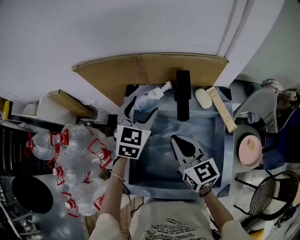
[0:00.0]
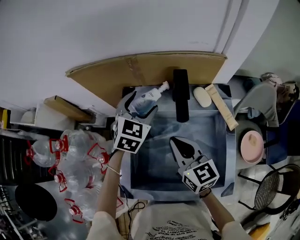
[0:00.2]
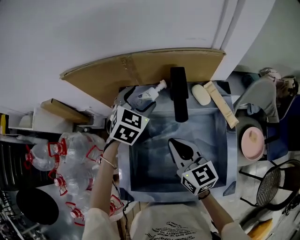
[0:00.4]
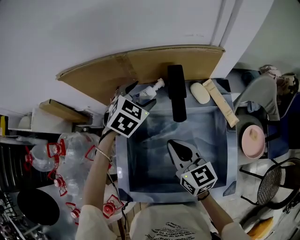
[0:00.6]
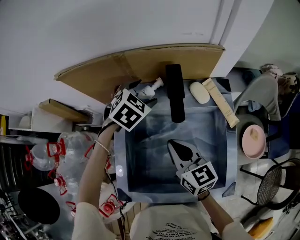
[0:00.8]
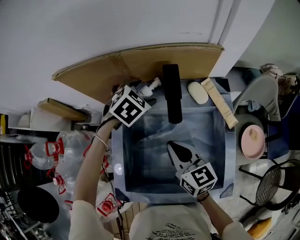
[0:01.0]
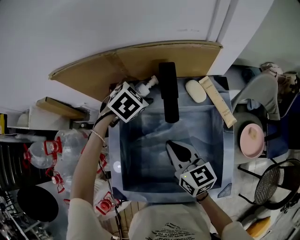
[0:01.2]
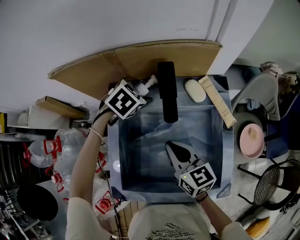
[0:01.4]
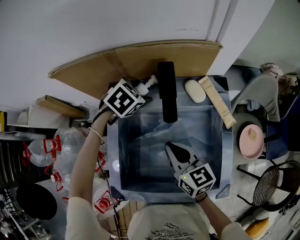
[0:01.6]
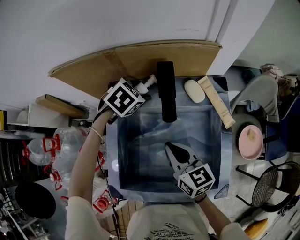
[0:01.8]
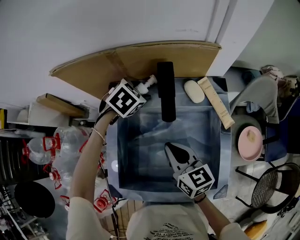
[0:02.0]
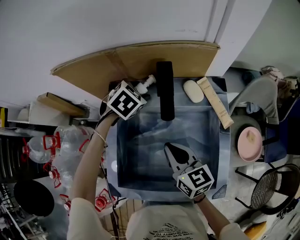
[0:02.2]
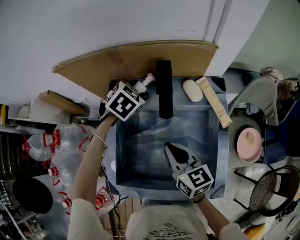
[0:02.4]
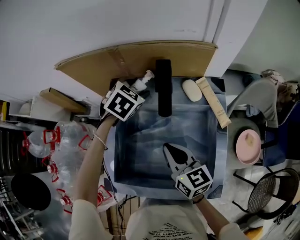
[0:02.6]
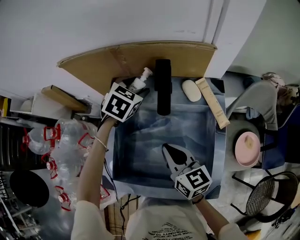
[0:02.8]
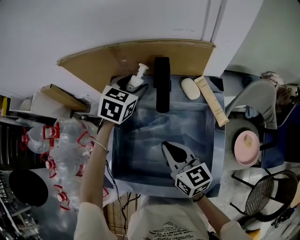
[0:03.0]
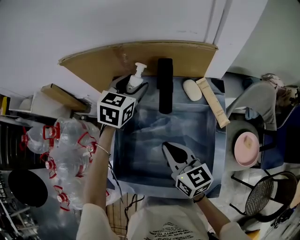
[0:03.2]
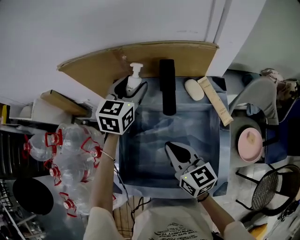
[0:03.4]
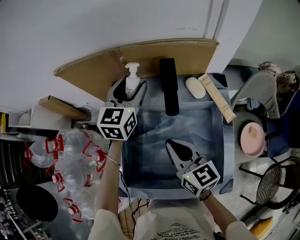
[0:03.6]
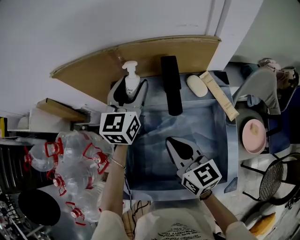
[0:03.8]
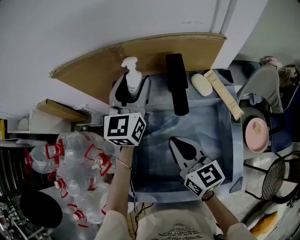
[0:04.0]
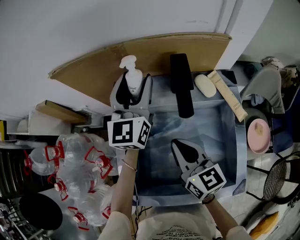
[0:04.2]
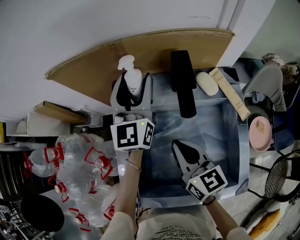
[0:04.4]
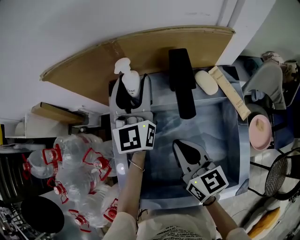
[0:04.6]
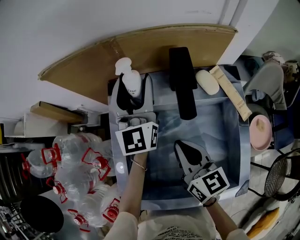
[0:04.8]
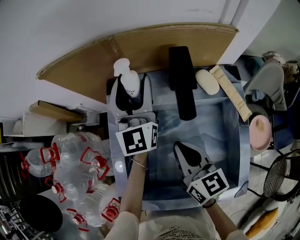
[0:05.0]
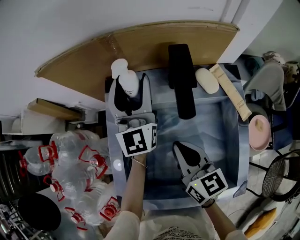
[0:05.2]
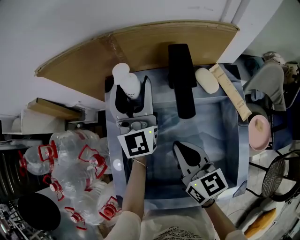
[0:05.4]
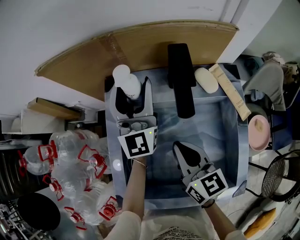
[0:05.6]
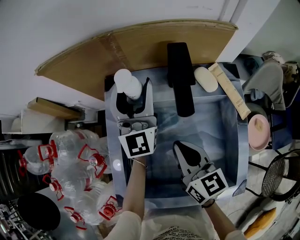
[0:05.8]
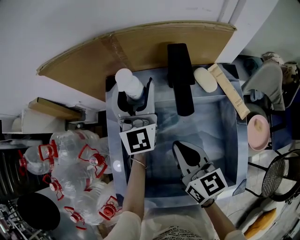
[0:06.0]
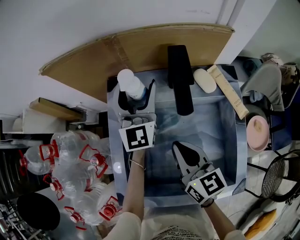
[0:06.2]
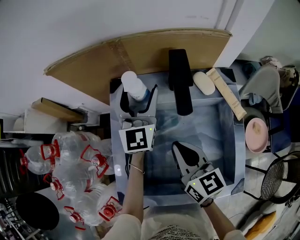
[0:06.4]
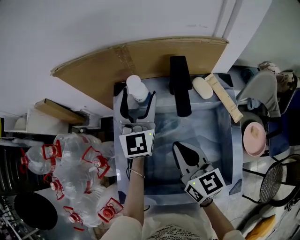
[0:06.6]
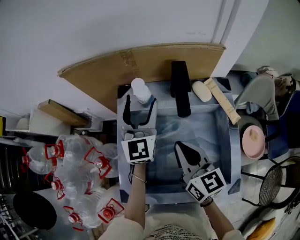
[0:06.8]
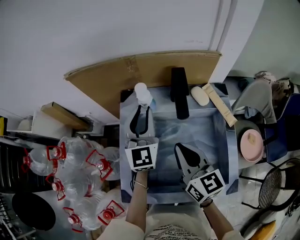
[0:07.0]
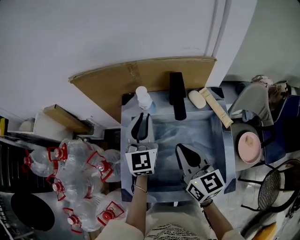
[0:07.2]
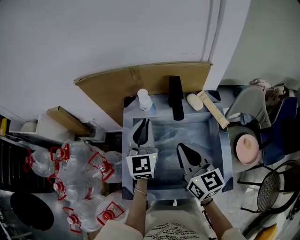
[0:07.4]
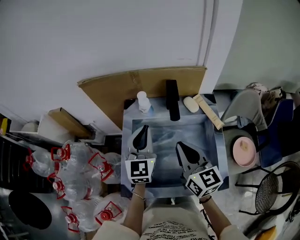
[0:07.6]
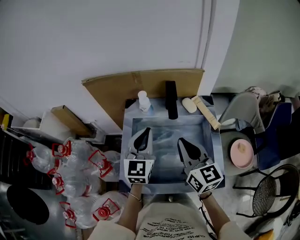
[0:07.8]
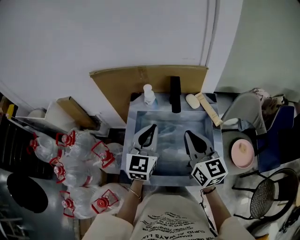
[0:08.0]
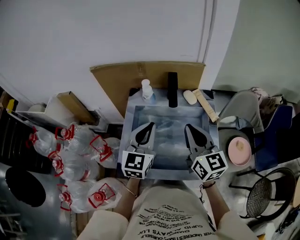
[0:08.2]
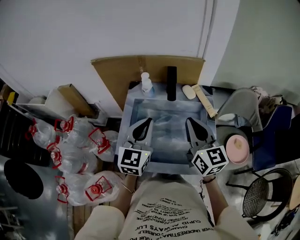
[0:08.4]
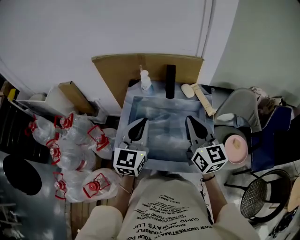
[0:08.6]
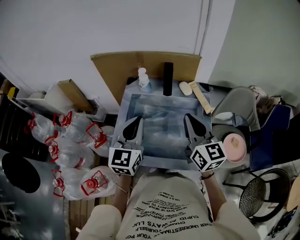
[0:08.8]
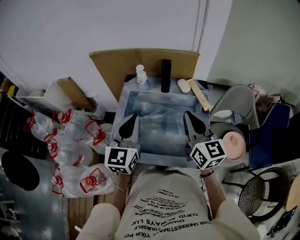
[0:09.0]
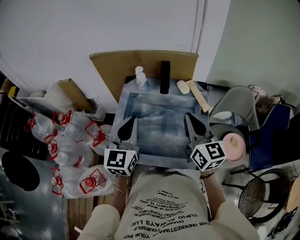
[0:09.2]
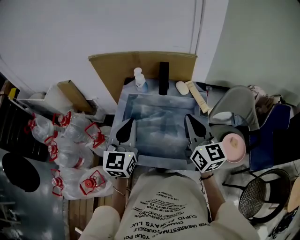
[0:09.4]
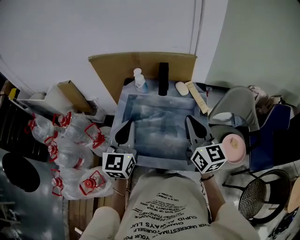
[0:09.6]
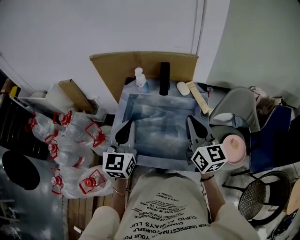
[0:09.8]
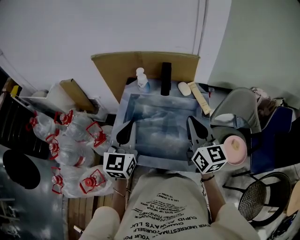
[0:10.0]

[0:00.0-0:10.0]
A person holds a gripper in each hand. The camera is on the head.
0:00.0 to 0:01.4: The left gripper goes some 10 cm downward and forward, and tilts its fingers some 40 degrees downward. The right gripper travels downward by approximately 5 cm.
0:01.4 to 0:02.8: The left gripper turns by some 20 degrees.
0:02.8 to 0:04.2: The left gripper moves upward, approximately 10 cm, and tilts its fingers about 50 degrees upward. The right gripper moves roughly 5 cm.
0:04.2 to 0:05.8: The grippers stay close to where they were, moving slightly.
0:05.8 to 0:07.2: The left gripper moves backward, some 10 cm, and closes. Meanwhile the right gripper moves upward, roughly 10 cm.
0:07.2 to 0:08.6: The right gripper moves to the right and upward, approximately 10 cm. The left gripper is displaced backward by about 15 cm.
0:08.6 to 0:10.0: The grippers make only small movements.

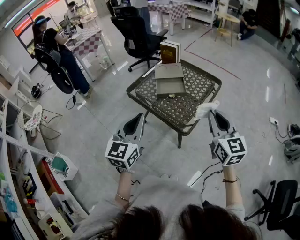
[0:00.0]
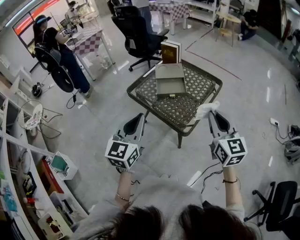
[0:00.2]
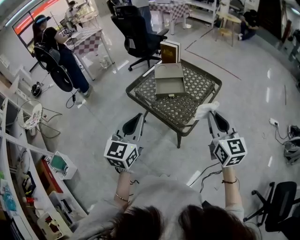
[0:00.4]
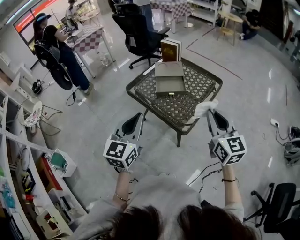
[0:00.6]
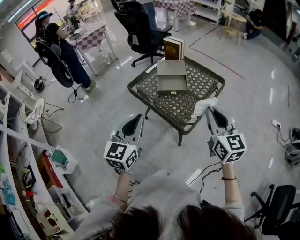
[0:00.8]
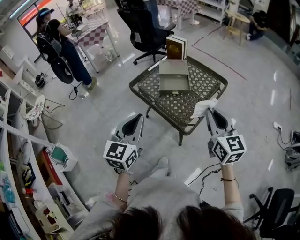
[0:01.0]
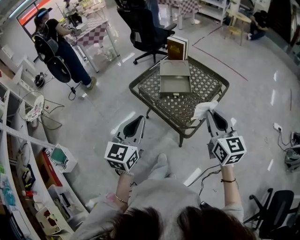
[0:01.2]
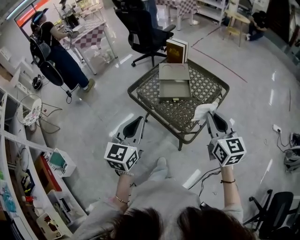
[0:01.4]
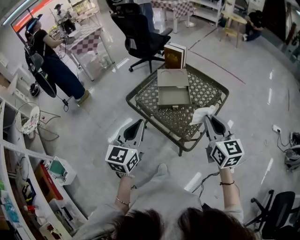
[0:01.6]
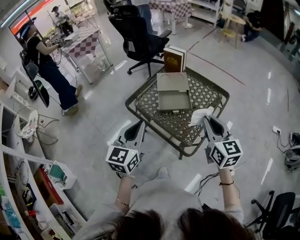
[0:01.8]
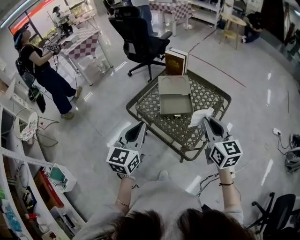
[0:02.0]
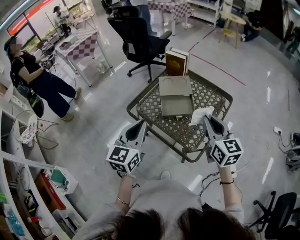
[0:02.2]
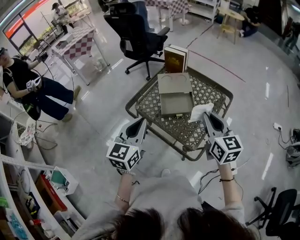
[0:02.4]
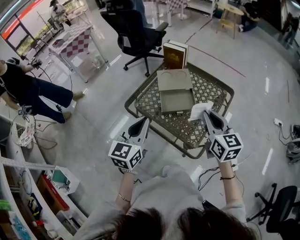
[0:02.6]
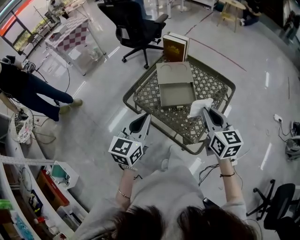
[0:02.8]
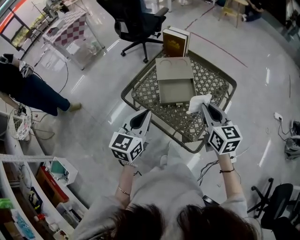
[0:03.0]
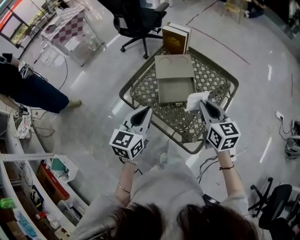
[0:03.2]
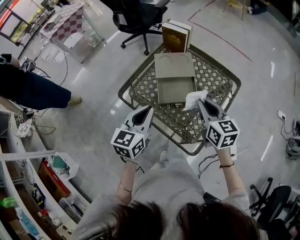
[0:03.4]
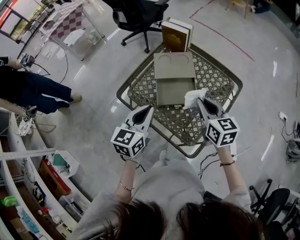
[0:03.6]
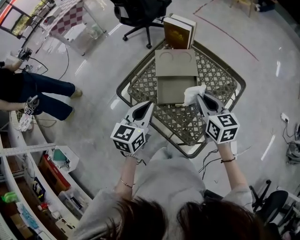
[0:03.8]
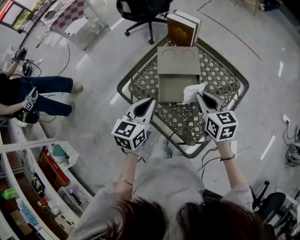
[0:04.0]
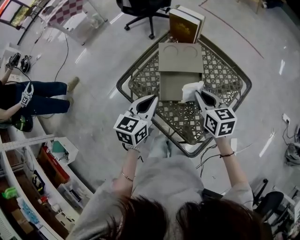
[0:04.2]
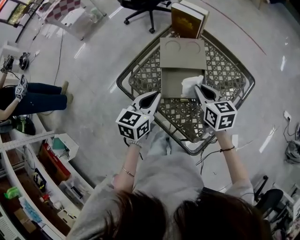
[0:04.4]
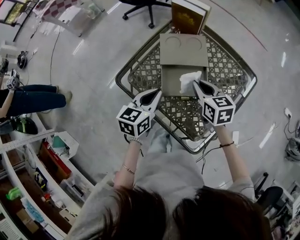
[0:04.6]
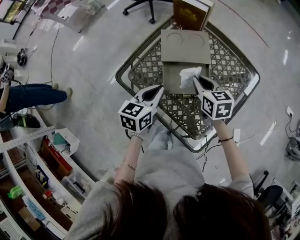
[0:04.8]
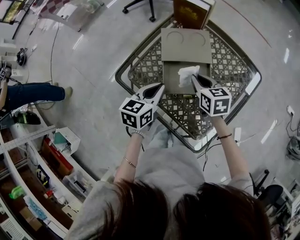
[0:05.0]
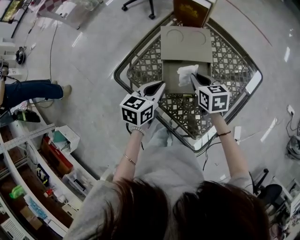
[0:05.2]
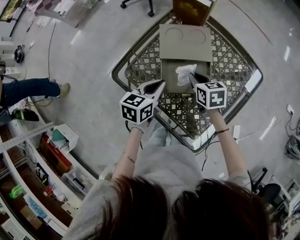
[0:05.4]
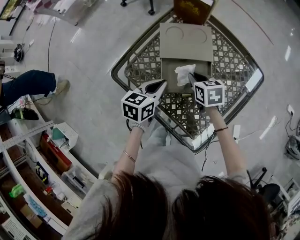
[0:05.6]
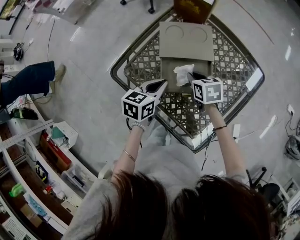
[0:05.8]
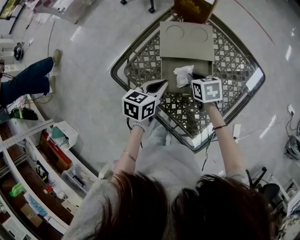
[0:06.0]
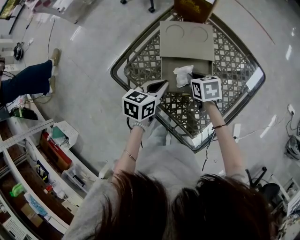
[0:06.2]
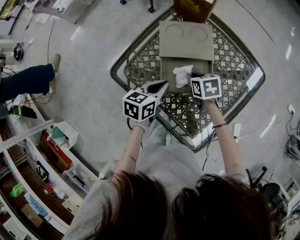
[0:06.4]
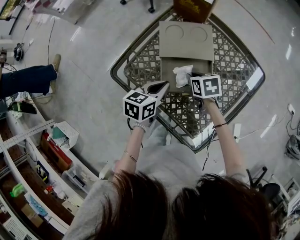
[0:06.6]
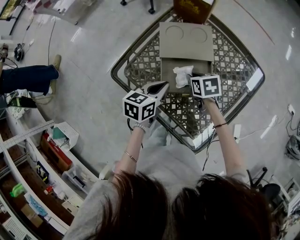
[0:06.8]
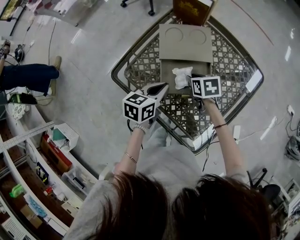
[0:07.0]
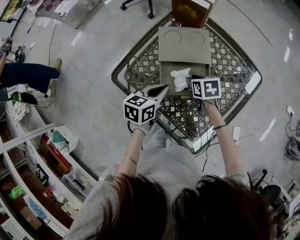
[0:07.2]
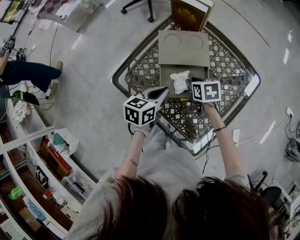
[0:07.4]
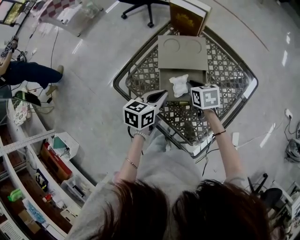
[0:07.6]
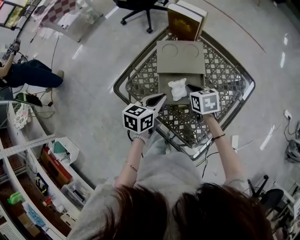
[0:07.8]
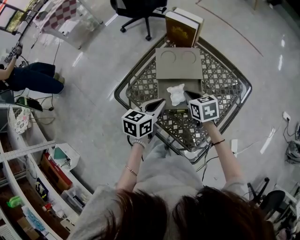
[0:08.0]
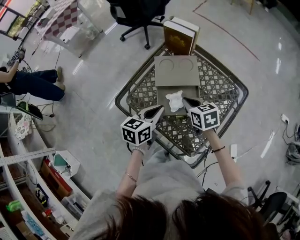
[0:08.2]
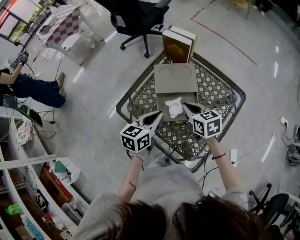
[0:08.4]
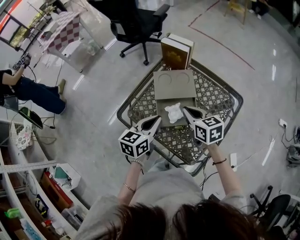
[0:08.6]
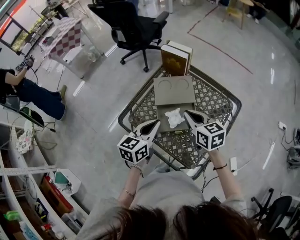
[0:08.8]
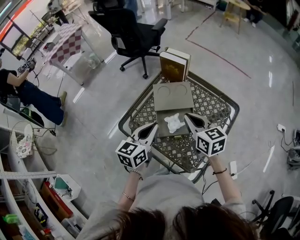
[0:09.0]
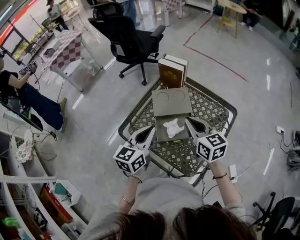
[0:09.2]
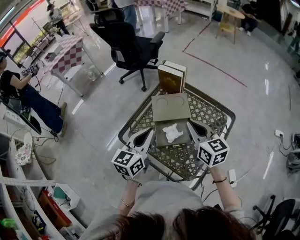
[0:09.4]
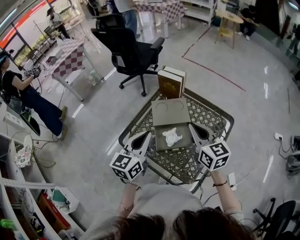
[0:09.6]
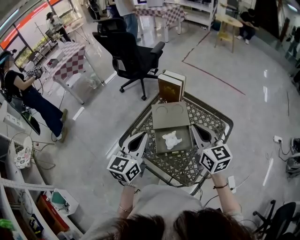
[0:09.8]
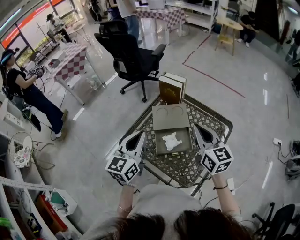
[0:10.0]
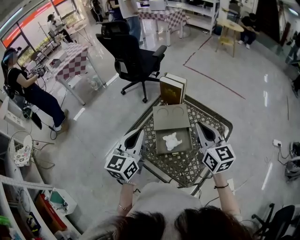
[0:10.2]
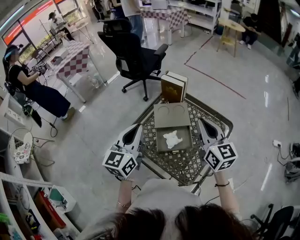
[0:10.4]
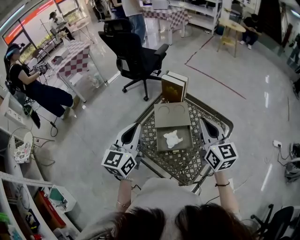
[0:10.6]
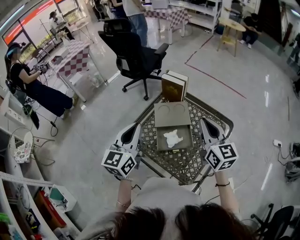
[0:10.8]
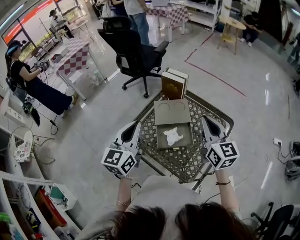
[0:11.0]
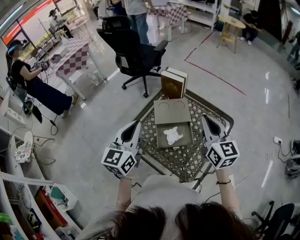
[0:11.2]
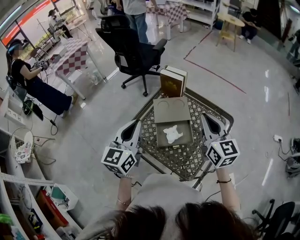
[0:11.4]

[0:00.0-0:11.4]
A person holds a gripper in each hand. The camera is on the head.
0:00.0 to 0:01.4: The grippers both shift forward by about 10 cm.
0:01.4 to 0:02.8: The left gripper moves forward, roughly 15 cm. Meanwhile the right gripper is displaced forward and downward by approximately 15 cm.
0:02.8 to 0:04.2: The two grippers go some 20 cm forward and downward.
0:04.2 to 0:05.6: The two grippers go some 15 cm downward and forward. The right gripper changes its angle by approximately 20 degrees.
0:05.6 to 0:07.2: There are only small adjustments of the grippers.
0:07.2 to 0:08.6: The right gripper moves upward, roughly 20 cm, swivels some 30 degrees, and closes its fingers; the left gripper travels upward by some 10 cm.
0:08.6 to 0:10.0: Both grippers move upward, about 15 cm. The right gripper turns by roughly 30 degrees, while the left gripper changes its angle by roughly 20 degrees.
0:10.0 to 0:11.4: There are only small adjustments of the grippers.

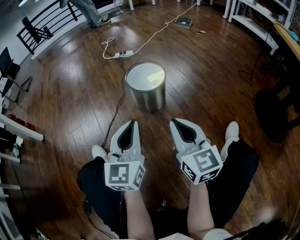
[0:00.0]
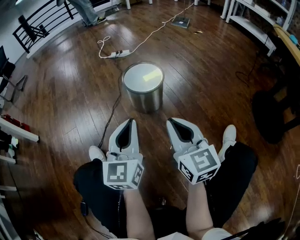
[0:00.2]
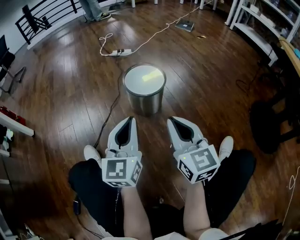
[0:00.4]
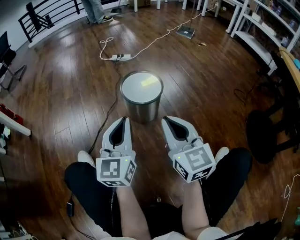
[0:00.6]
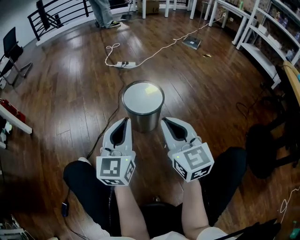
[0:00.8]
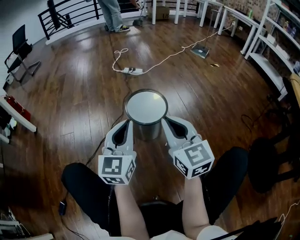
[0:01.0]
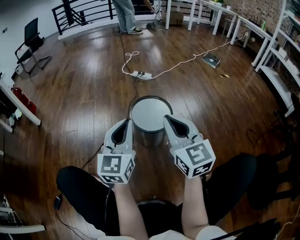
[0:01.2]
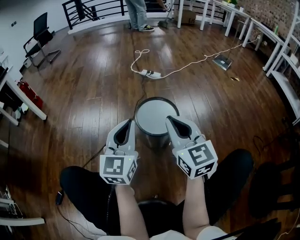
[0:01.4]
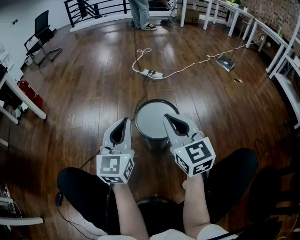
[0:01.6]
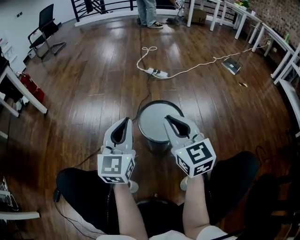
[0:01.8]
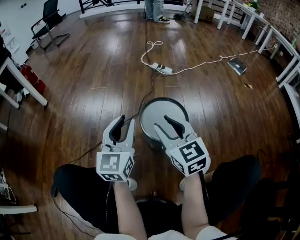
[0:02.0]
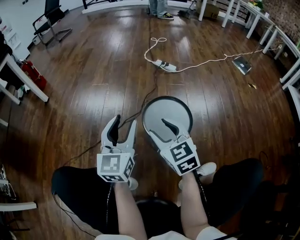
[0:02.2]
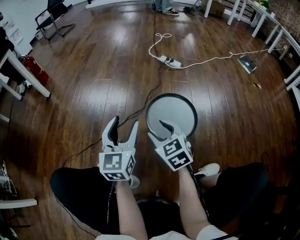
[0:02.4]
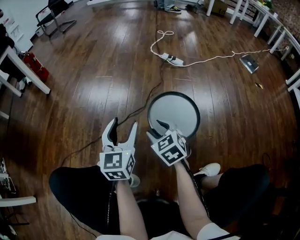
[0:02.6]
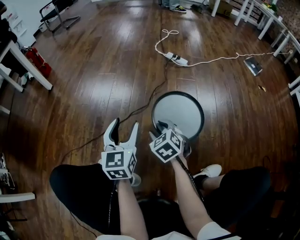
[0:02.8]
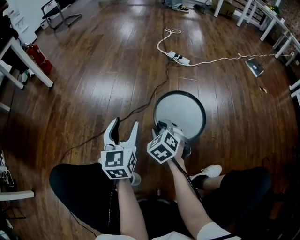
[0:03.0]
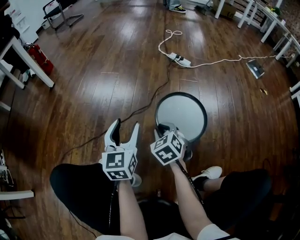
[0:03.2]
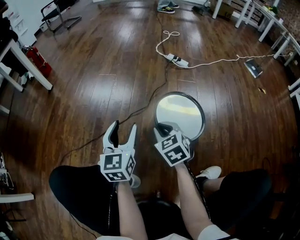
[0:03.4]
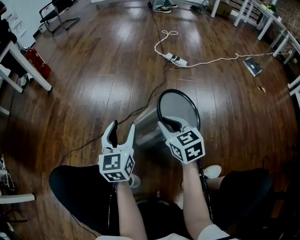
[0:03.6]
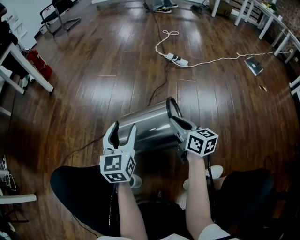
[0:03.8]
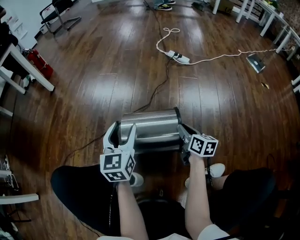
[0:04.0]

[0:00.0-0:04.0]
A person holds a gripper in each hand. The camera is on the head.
0:00.0 to 0:01.4: The two grippers go some 20 cm forward. The right gripper swivels some 30 degrees.
0:01.4 to 0:02.6: The left gripper shifts about 15 cm downward, forward and to the left, turns by approximately 20 degrees, and opens its fingers. The right gripper travels downward and forward by some 25 cm, angles its fingers downward, by roughly 40 degrees, and opens up.
0:02.6 to 0:04.0: The right gripper shifts about 15 cm to the right and downward, rolls clockwise, seen from behind, by some 50 degrees, and closes up.
